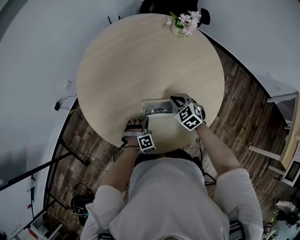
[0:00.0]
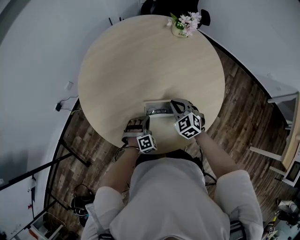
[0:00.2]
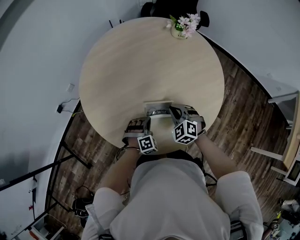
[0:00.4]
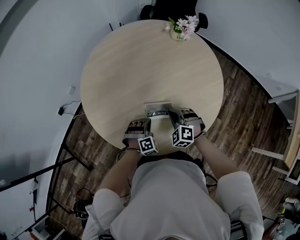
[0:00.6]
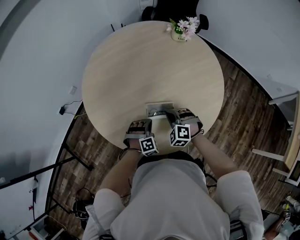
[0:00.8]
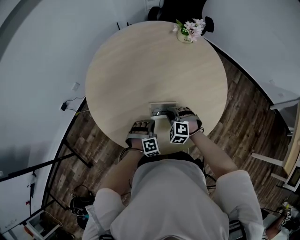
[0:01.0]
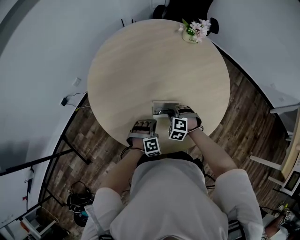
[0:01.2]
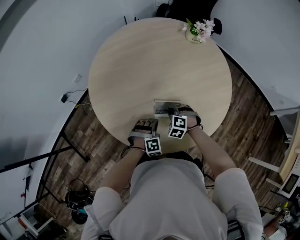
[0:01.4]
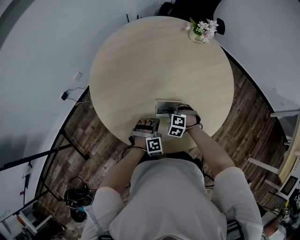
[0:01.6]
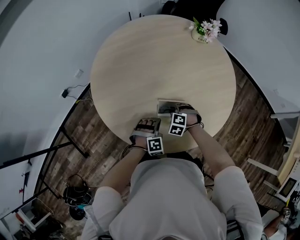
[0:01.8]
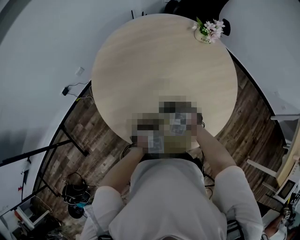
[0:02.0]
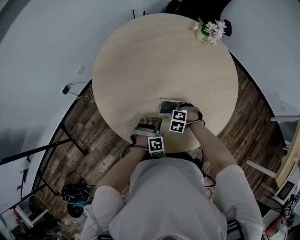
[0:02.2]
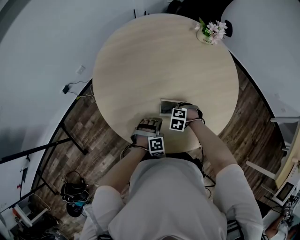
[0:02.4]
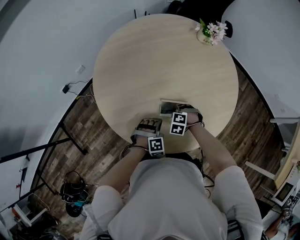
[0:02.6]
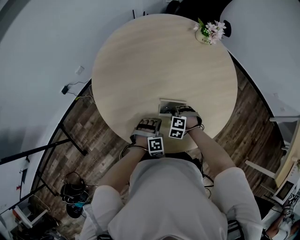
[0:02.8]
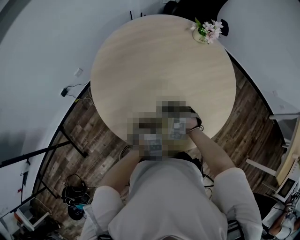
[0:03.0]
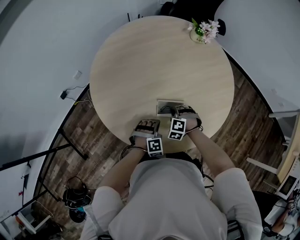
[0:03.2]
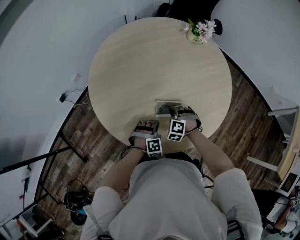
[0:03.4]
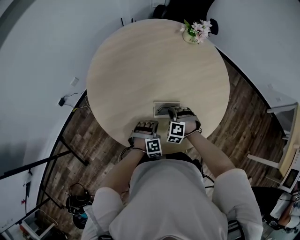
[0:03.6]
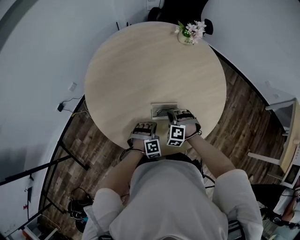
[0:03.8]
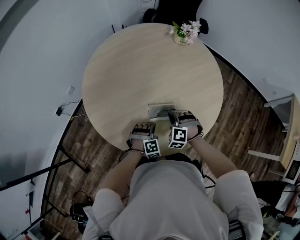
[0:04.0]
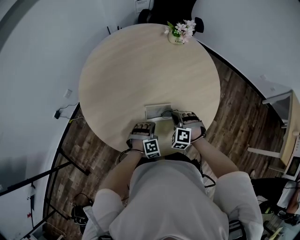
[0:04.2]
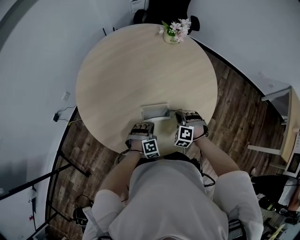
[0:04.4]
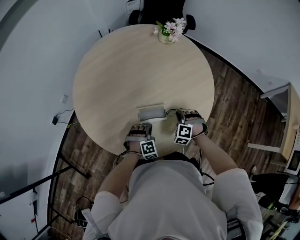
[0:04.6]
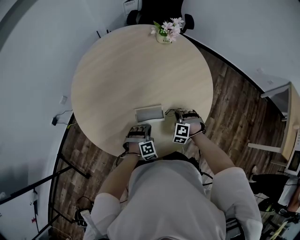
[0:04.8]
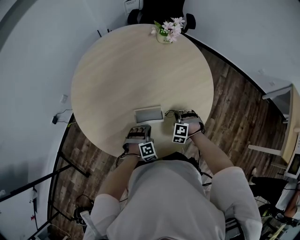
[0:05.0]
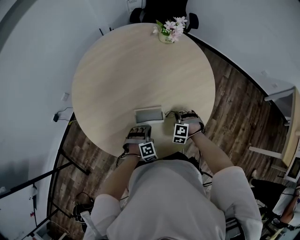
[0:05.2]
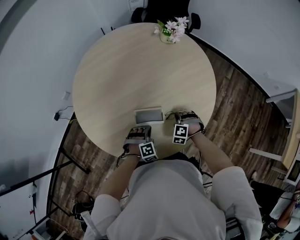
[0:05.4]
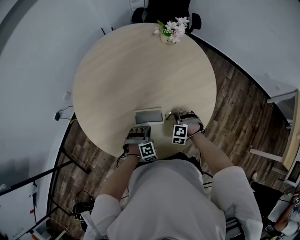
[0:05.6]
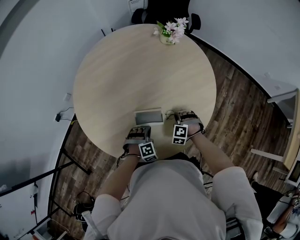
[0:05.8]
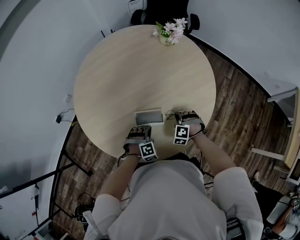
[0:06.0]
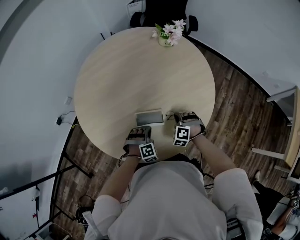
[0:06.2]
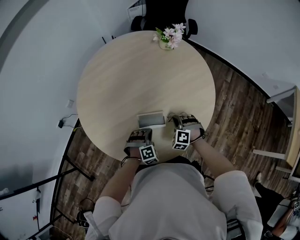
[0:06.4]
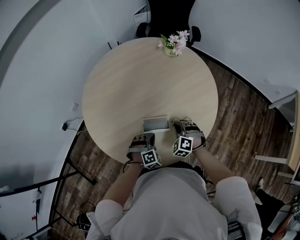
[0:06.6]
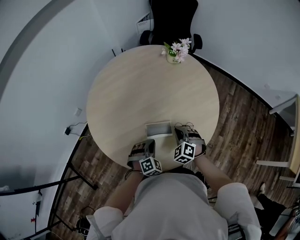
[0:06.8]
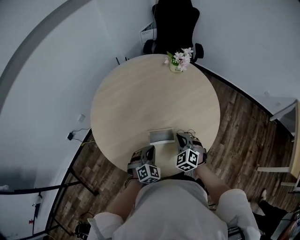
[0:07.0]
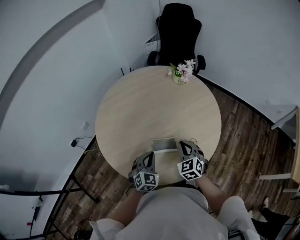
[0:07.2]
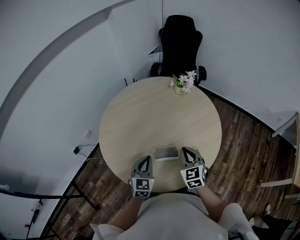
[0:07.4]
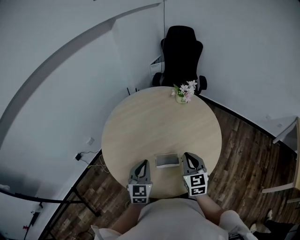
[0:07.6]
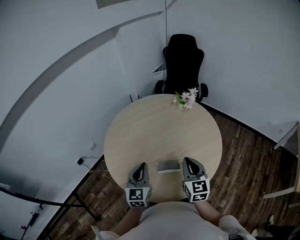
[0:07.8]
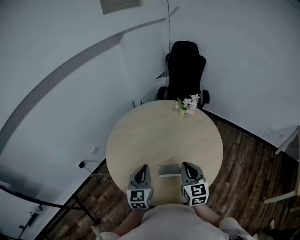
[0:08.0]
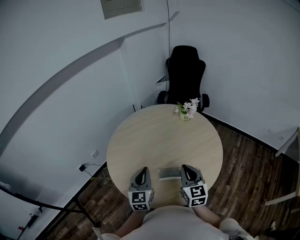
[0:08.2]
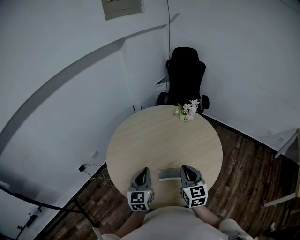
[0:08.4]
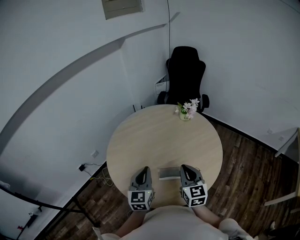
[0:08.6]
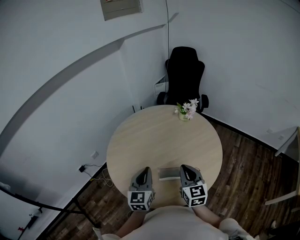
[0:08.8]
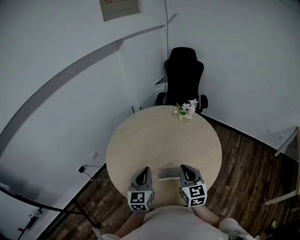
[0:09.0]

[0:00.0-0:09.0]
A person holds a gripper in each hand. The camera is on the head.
0:00.0 to 0:01.6: The right gripper moves downward and to the left, about 10 cm, and changes its angle by approximately 40 degrees.
0:01.6 to 0:03.0: There are only small adjustments of the grippers.
0:03.0 to 0:04.4: The right gripper travels to the right and upward by roughly 15 cm.
0:04.4 to 0:06.0: The right gripper is displaced downward by roughly 5 cm.
0:06.0 to 0:07.6: The left gripper moves upward and to the left, approximately 30 cm, and twists about 60 degrees counterclockwise, seen from behind. Meanwhile the right gripper goes roughly 30 cm upward, and rotates around the line of its fingers by some 70 degrees, clockwise from behind.
0:07.6 to 0:09.0: The left gripper moves upward, some 5 cm, while the right gripper ends up about 5 cm from where it was.

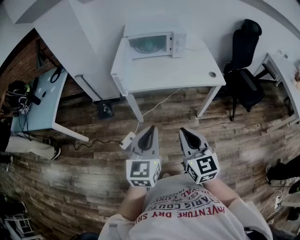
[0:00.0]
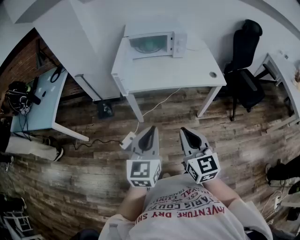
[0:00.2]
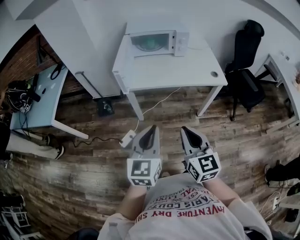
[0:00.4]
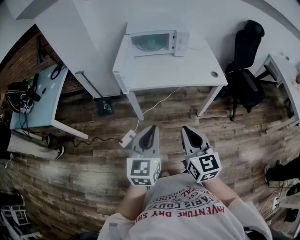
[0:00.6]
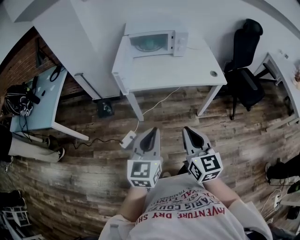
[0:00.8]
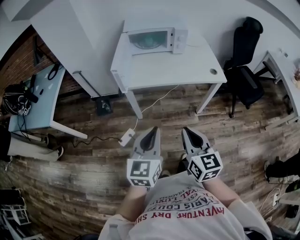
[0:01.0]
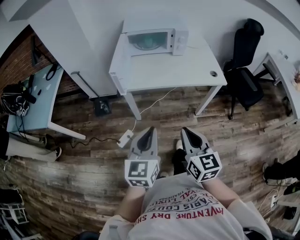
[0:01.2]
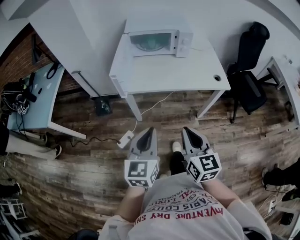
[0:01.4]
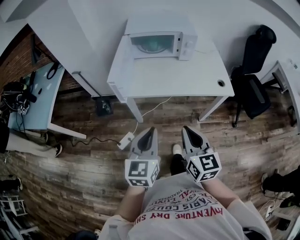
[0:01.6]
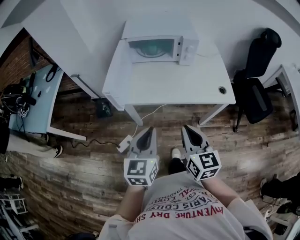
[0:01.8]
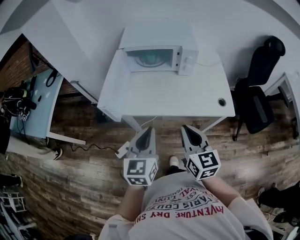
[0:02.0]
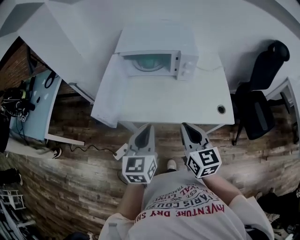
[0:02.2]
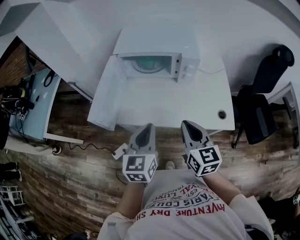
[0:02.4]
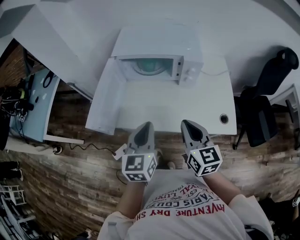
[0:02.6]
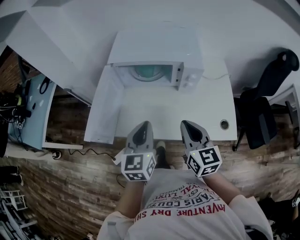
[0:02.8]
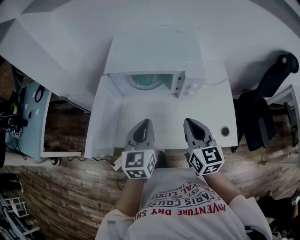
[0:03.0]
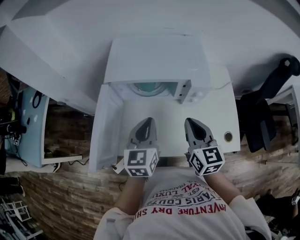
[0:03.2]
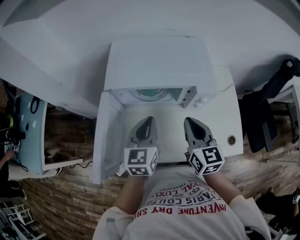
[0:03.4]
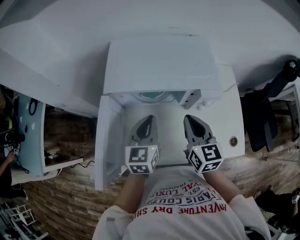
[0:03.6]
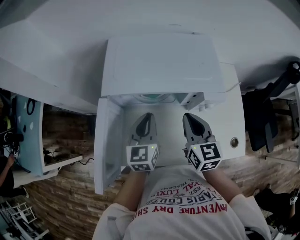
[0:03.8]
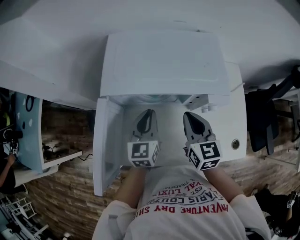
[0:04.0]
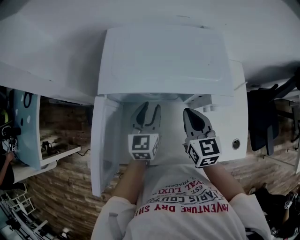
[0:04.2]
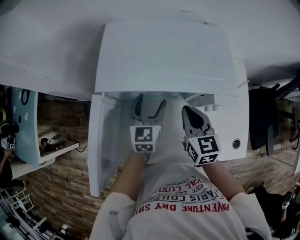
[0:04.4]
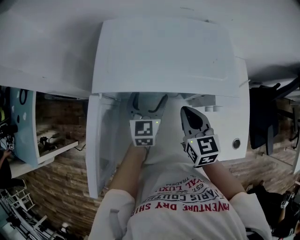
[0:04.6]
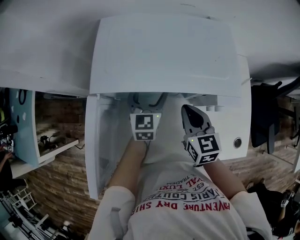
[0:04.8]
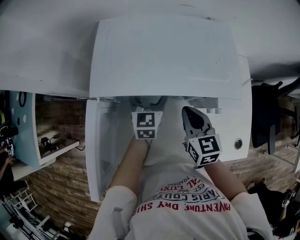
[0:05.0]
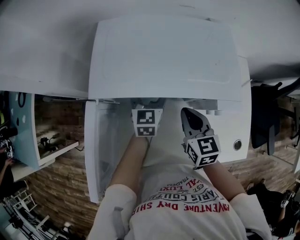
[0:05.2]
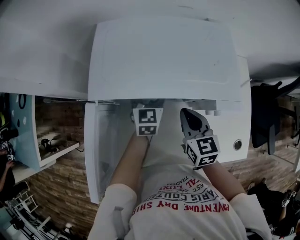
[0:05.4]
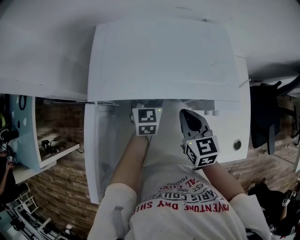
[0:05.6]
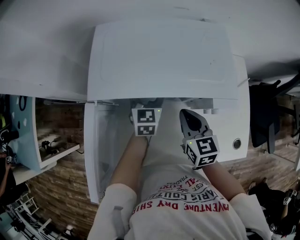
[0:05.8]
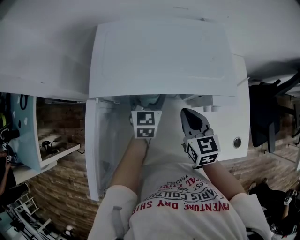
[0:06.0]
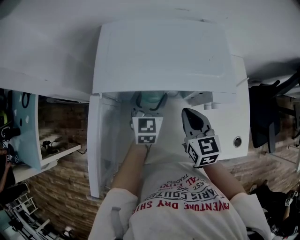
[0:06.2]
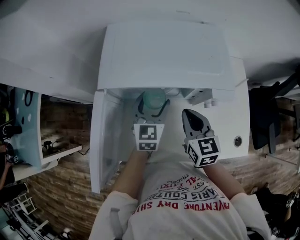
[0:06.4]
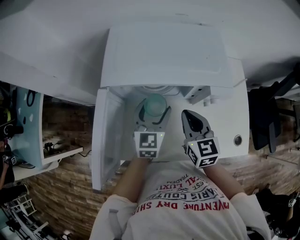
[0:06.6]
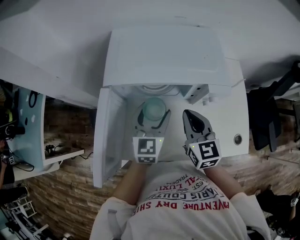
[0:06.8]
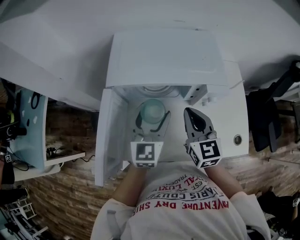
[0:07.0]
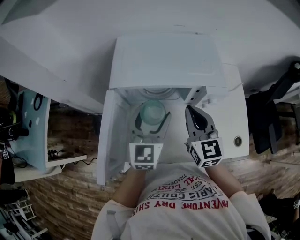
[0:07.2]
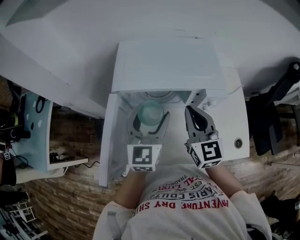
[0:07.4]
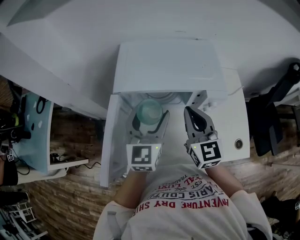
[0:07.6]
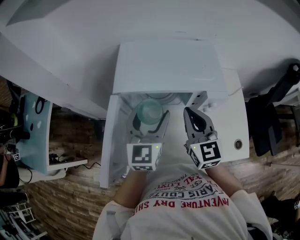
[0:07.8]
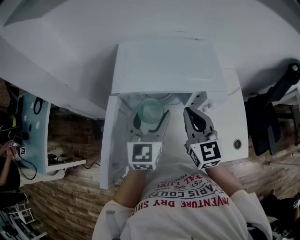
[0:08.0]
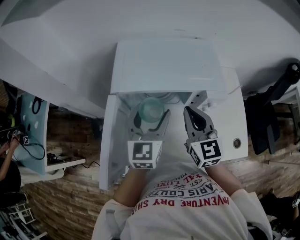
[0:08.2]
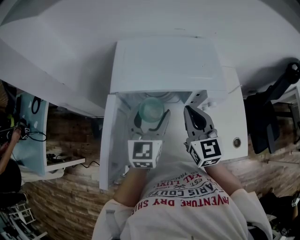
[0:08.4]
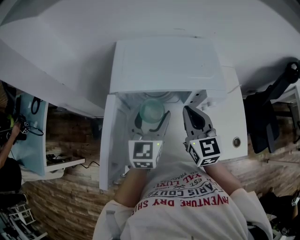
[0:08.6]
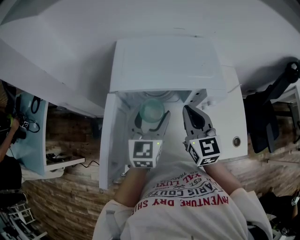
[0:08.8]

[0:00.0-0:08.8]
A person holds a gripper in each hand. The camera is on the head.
0:00.0 to 0:01.4: The grippers both shift forward by roughly 5 cm.
0:01.4 to 0:03.0: The two grippers travel together, forward, roughly 40 cm.
0:03.0 to 0:04.4: The grippers both shift forward and downward by some 25 cm. The left gripper opens up.
0:04.4 to 0:05.8: The left gripper goes approximately 5 cm forward.
0:05.8 to 0:07.4: The right gripper moves upward, about 15 cm, and rotates some 20 degrees. Meanwhile the left gripper shifts some 25 cm upward and backward.
0:07.4 to 0:08.8: The grippers move only a little.

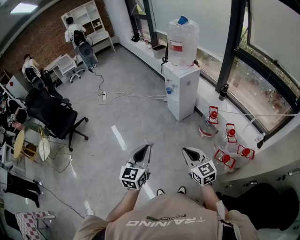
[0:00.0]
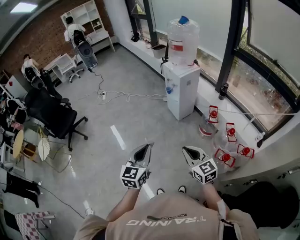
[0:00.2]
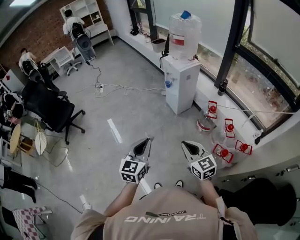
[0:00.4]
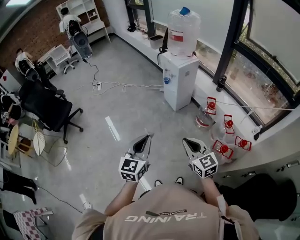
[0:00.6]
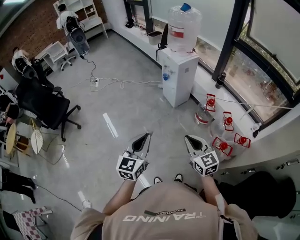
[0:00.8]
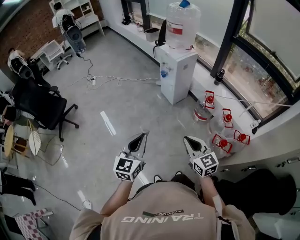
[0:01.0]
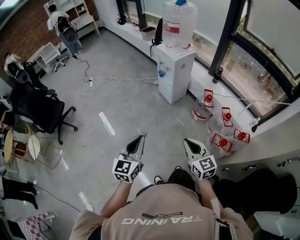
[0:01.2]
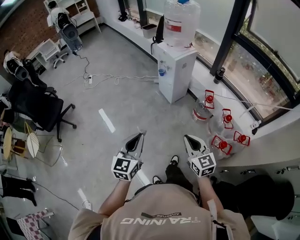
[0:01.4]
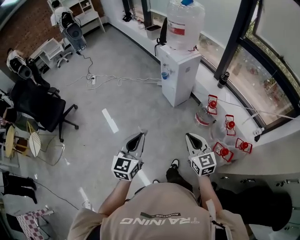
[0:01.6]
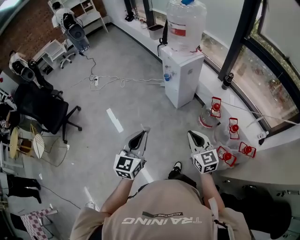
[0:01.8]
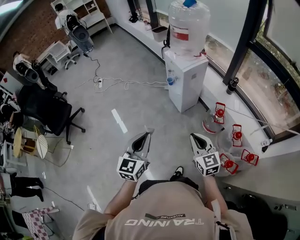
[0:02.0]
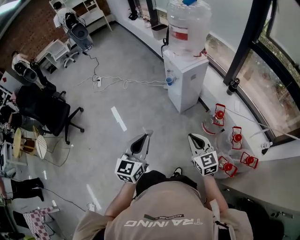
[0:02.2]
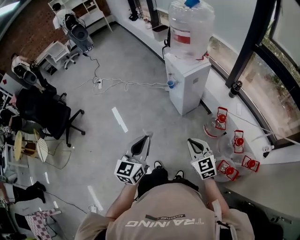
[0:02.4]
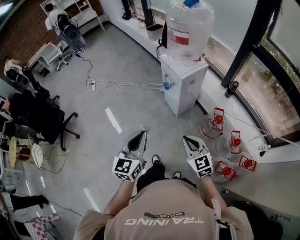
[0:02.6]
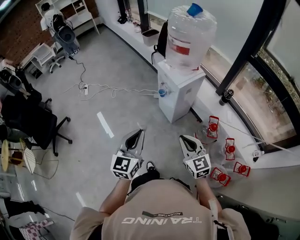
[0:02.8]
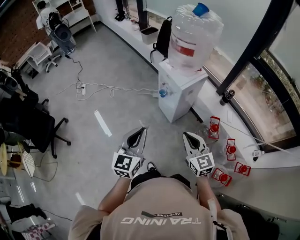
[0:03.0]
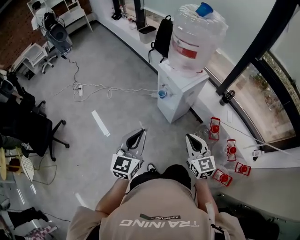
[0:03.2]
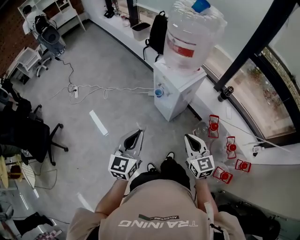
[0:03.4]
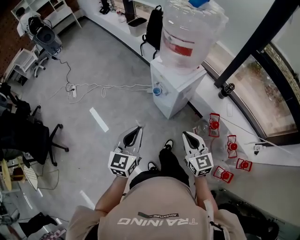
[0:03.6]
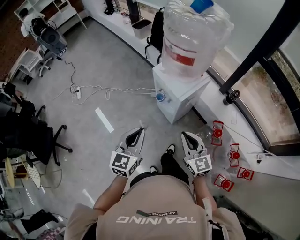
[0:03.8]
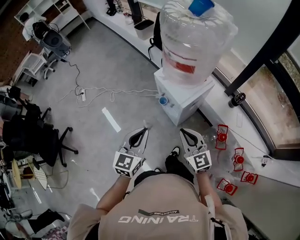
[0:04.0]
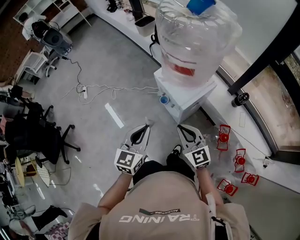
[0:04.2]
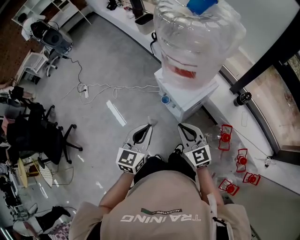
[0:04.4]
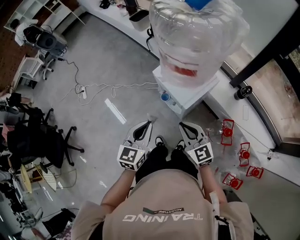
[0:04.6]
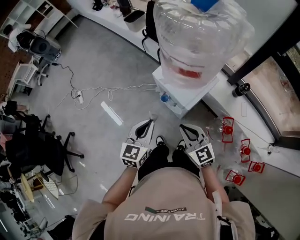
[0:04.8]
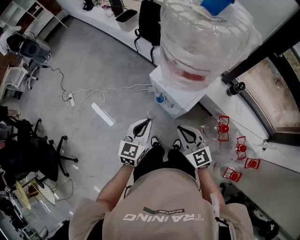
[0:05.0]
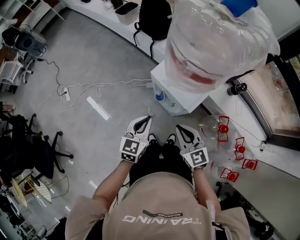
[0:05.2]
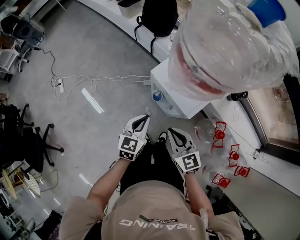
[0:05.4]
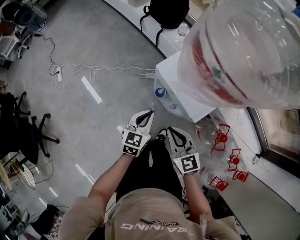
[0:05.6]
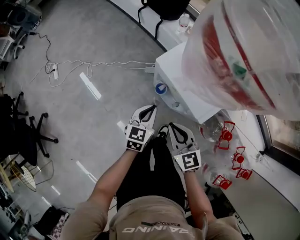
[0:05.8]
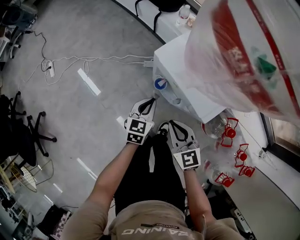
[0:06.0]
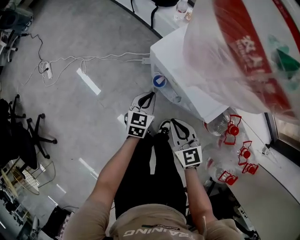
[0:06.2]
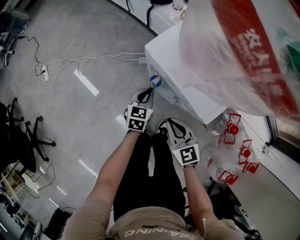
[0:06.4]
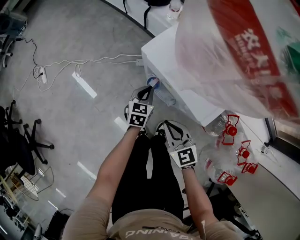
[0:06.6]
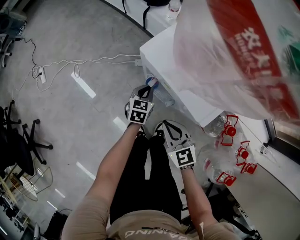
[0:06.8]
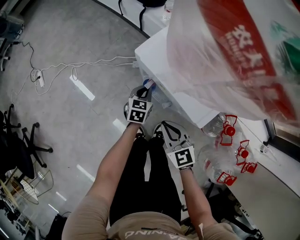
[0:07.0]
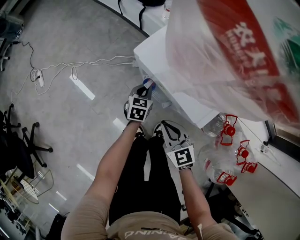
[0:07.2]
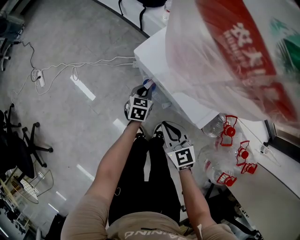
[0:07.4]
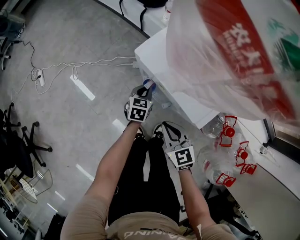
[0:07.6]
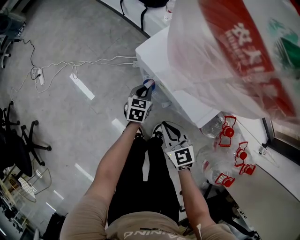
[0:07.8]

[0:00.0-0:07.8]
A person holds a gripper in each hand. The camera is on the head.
0:00.0 to 0:01.6: Both grippers travel together forward, about 10 cm.
0:01.6 to 0:03.2: The grippers both shift forward by about 30 cm.
0:03.2 to 0:04.6: Both grippers travel together forward, approximately 25 cm.
0:04.6 to 0:06.2: The right gripper goes roughly 25 cm downward, while the left gripper shifts approximately 40 cm downward and forward.
0:06.2 to 0:07.8: The left gripper goes some 10 cm downward and forward.
